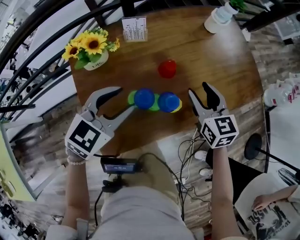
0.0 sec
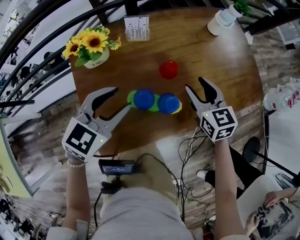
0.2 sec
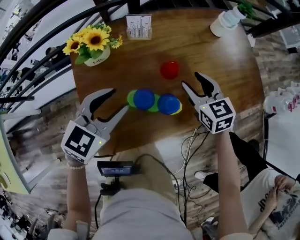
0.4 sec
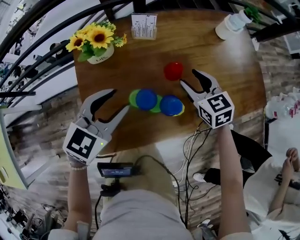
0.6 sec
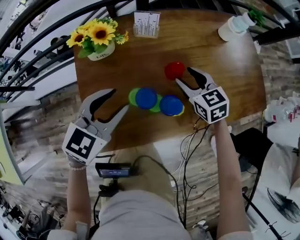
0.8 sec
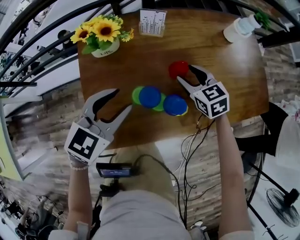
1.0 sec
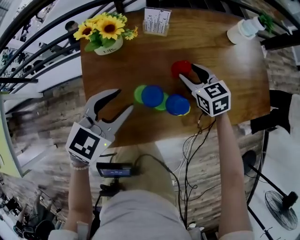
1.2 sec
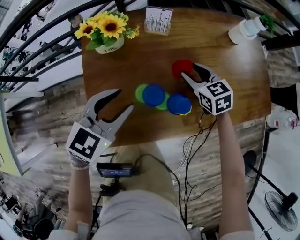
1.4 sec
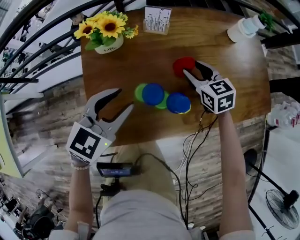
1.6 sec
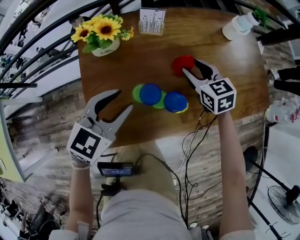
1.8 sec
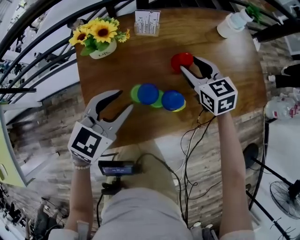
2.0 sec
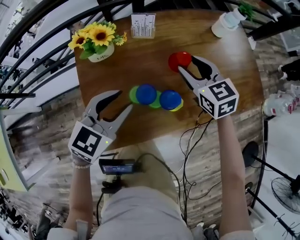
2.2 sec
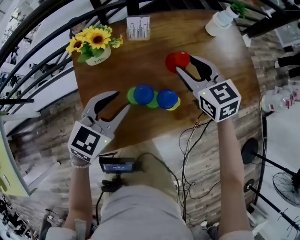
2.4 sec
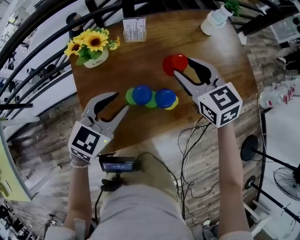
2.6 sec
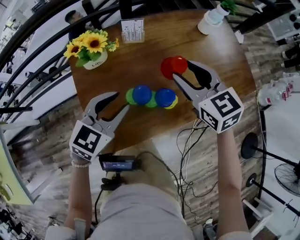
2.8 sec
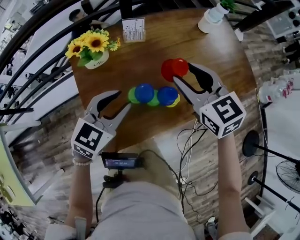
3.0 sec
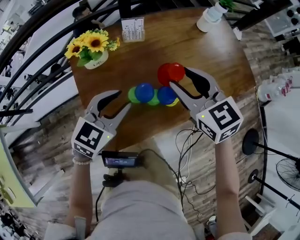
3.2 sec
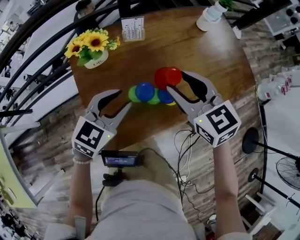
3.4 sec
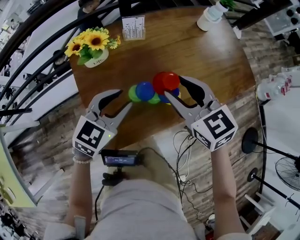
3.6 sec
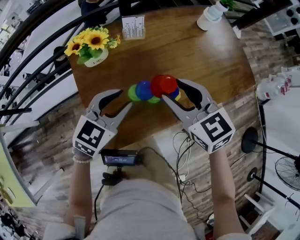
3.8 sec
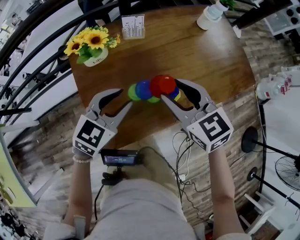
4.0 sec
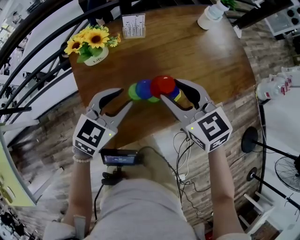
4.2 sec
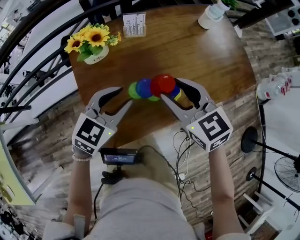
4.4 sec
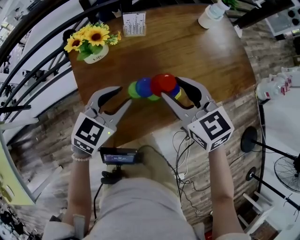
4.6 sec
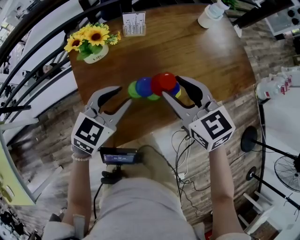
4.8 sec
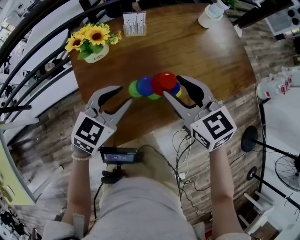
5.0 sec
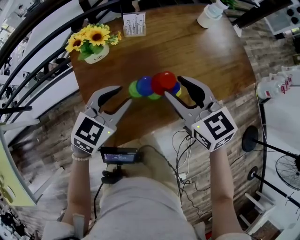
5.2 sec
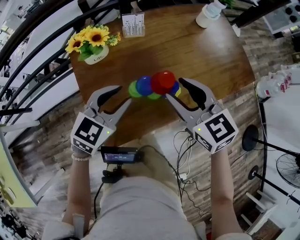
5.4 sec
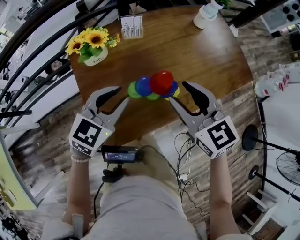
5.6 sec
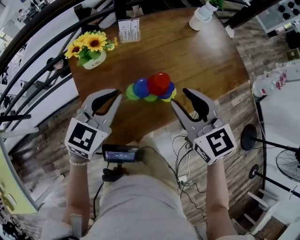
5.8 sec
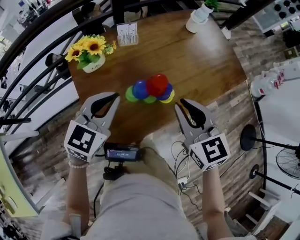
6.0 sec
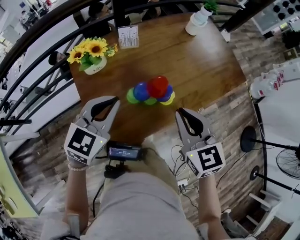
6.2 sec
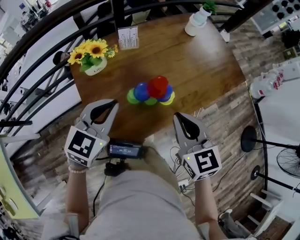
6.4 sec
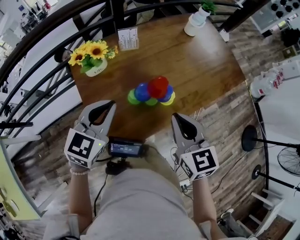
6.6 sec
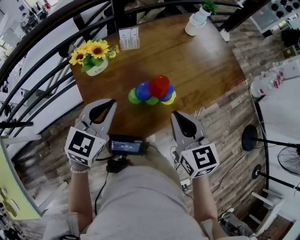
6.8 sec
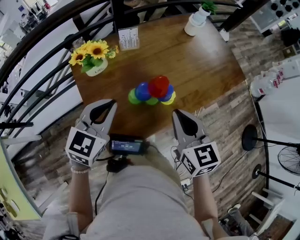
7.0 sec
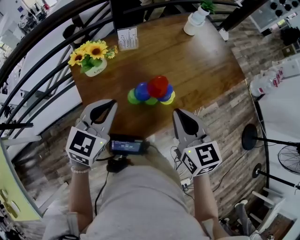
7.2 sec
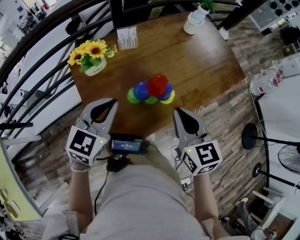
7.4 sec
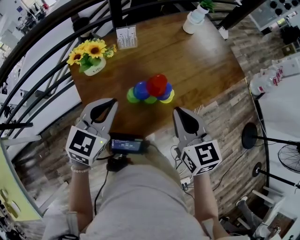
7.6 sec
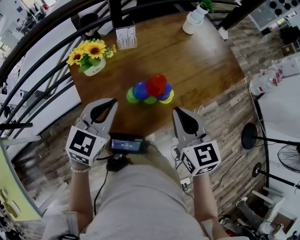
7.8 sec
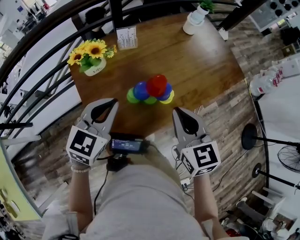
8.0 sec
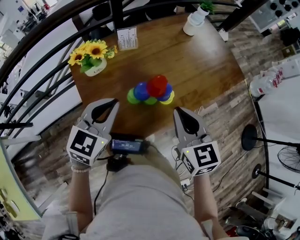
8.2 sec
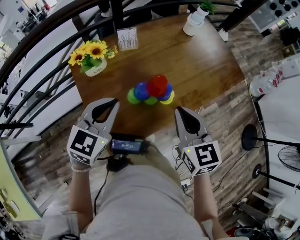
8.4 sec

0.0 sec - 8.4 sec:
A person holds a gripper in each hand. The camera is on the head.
0.0 sec - 1.4 sec: The right gripper heads downward, forward and to the left, covering approximately 15 cm, and rotates some 30 degrees.
1.4 sec - 2.8 sec: The right gripper moves upward, some 15 cm.
2.8 sec - 4.2 sec: The right gripper shifts some 5 cm backward.
4.2 sec - 5.6 sec: There are only small adjustments of the grippers.
5.6 sec - 7.0 sec: The left gripper ends up some 5 cm from where it was, and closes up, while the right gripper shifts some 5 cm backward, swivels some 20 degrees, and closes its fingers.
7.0 sec - 8.4 sec: Neither gripper changes place.

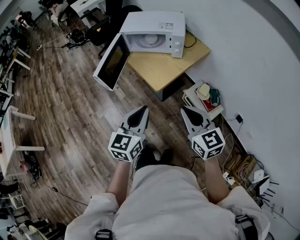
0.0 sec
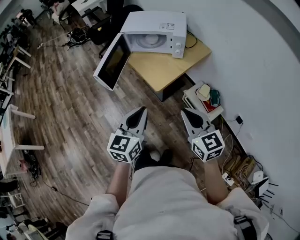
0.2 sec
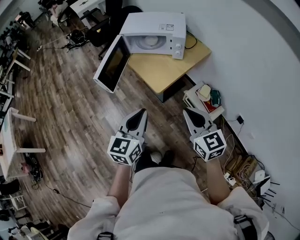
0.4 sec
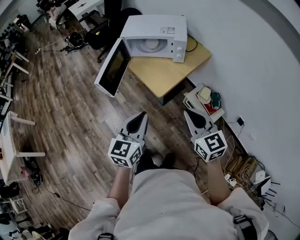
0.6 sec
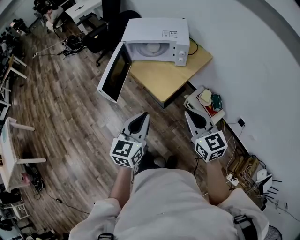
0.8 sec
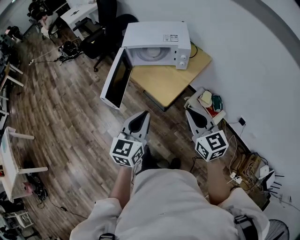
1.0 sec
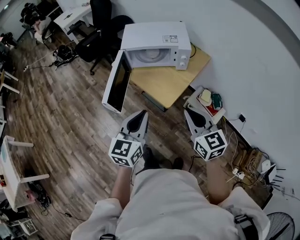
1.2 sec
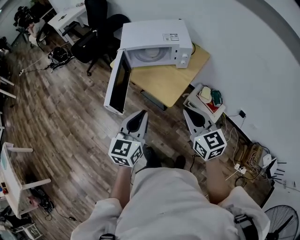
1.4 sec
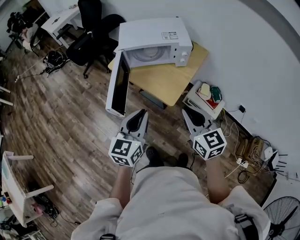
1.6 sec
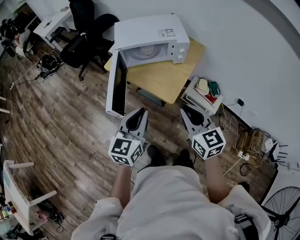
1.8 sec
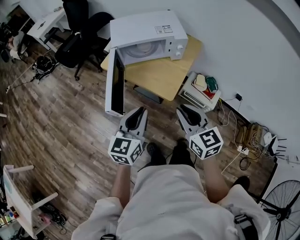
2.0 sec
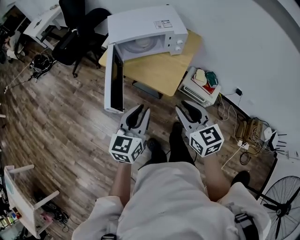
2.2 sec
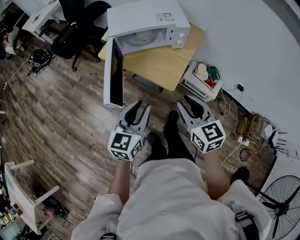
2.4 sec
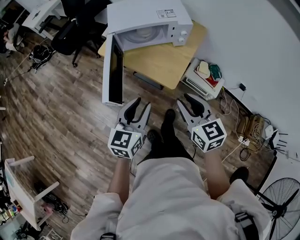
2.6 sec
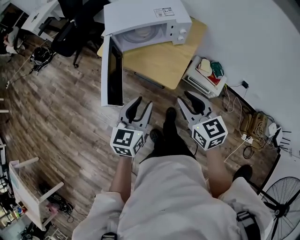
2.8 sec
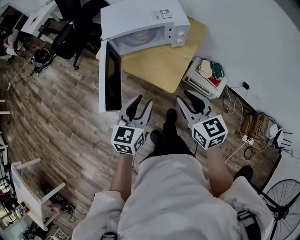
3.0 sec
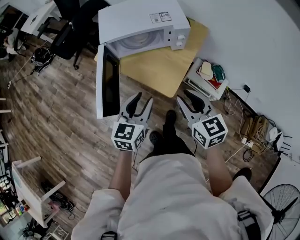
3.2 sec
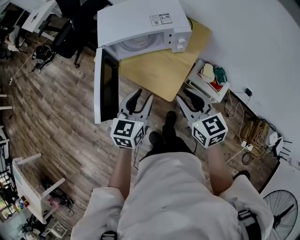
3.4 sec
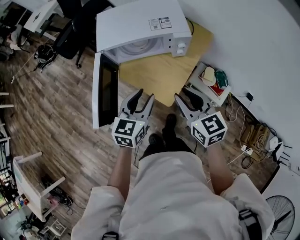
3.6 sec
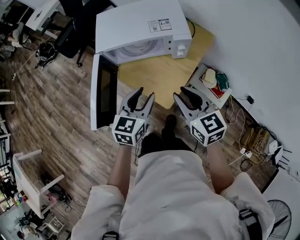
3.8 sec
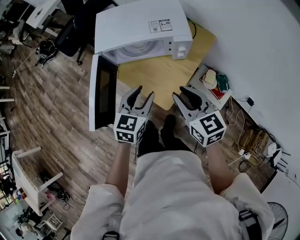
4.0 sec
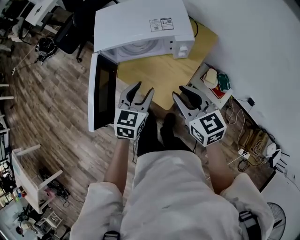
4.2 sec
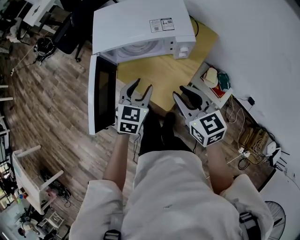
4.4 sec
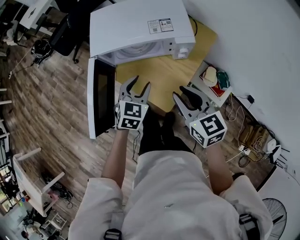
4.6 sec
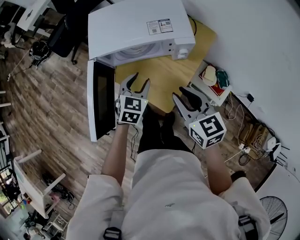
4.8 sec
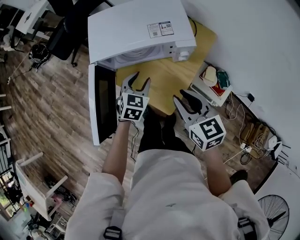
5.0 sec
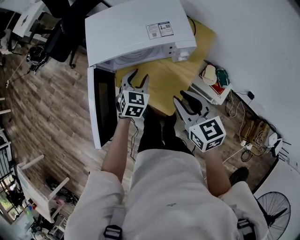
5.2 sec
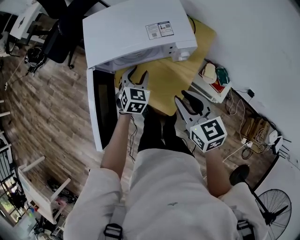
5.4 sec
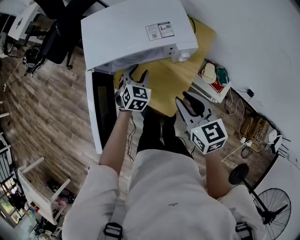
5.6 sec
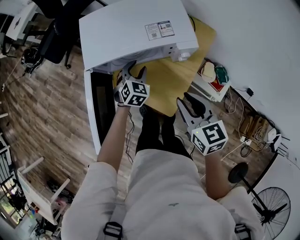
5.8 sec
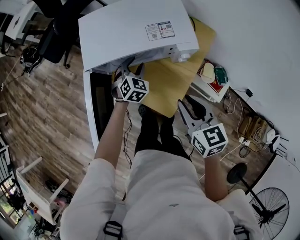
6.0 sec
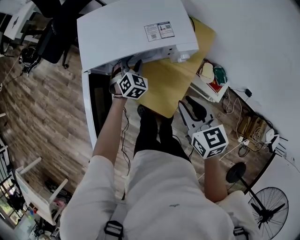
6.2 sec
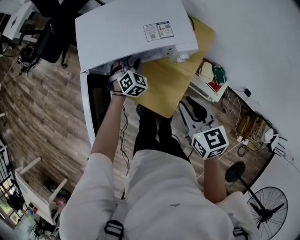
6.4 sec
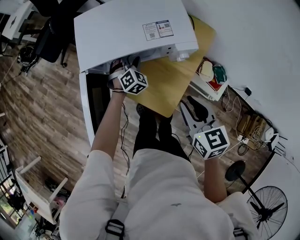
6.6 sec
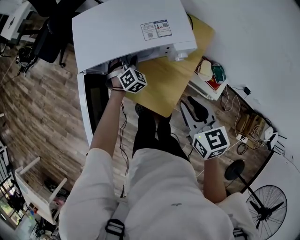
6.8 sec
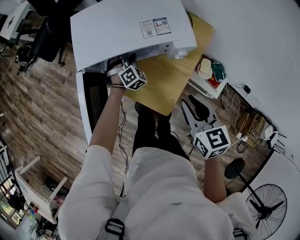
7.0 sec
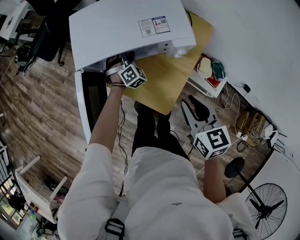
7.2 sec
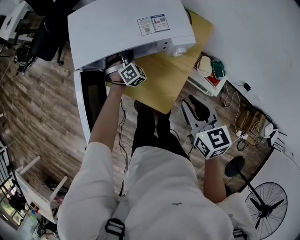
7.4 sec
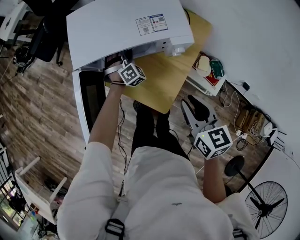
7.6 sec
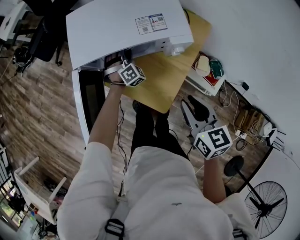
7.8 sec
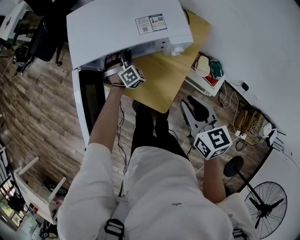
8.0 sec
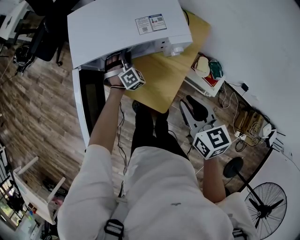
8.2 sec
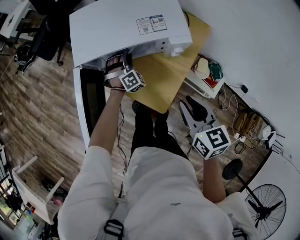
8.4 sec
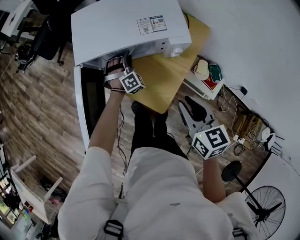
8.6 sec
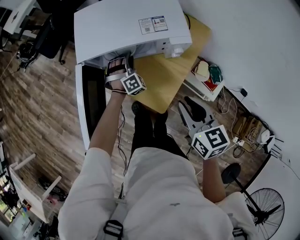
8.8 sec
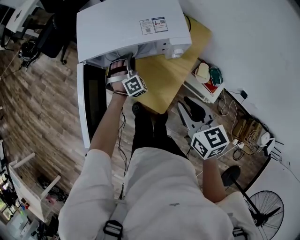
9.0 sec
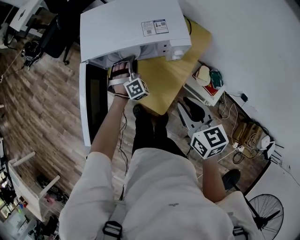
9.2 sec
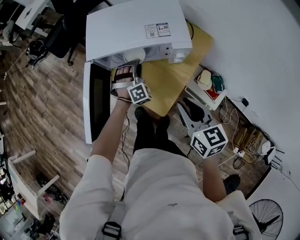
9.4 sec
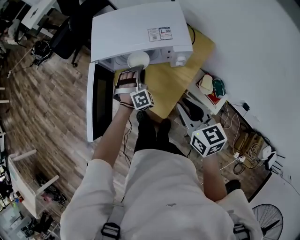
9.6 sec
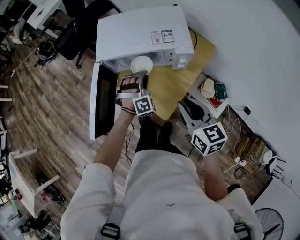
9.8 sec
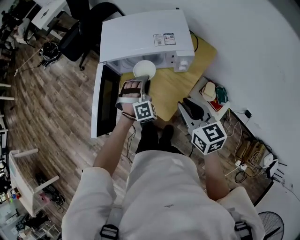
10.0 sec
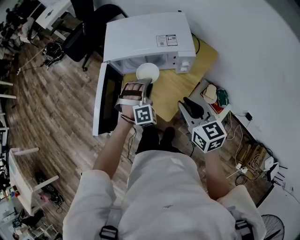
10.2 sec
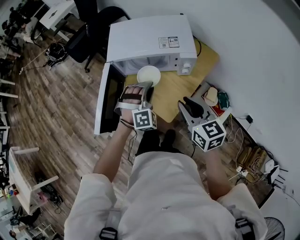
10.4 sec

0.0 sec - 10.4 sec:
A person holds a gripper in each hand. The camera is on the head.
0.0 sec - 1.4 sec: Both grippers travel together to the left and forward, roughly 20 cm.
1.4 sec - 3.0 sec: Both grippers travel together forward and downward, approximately 10 cm. The left gripper opens up; the right gripper opens up.
3.0 sec - 4.4 sec: The grippers both shift forward by roughly 15 cm.
4.4 sec - 6.0 sec: The left gripper goes approximately 20 cm forward and downward, and turns by about 30 degrees.
6.0 sec - 7.4 sec: The left gripper heads forward and downward, covering about 10 cm, and swivels some 30 degrees.
7.4 sec - 9.0 sec: The left gripper is displaced backward by some 5 cm.
9.0 sec - 10.4 sec: The left gripper goes about 20 cm backward and upward.

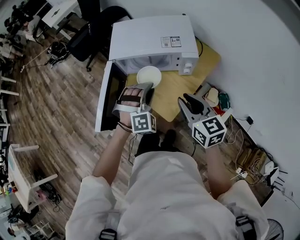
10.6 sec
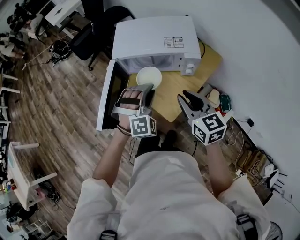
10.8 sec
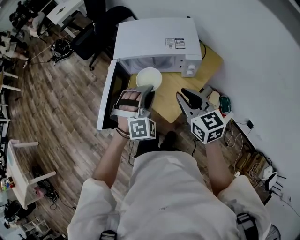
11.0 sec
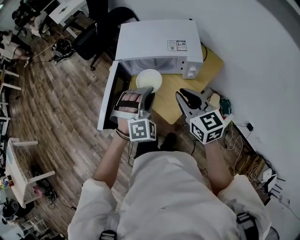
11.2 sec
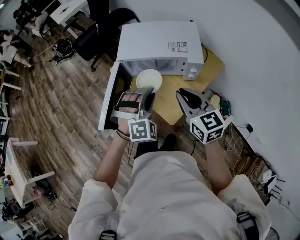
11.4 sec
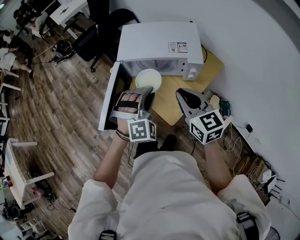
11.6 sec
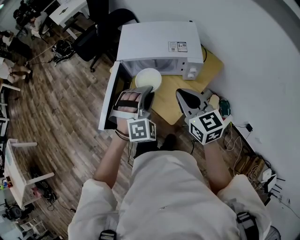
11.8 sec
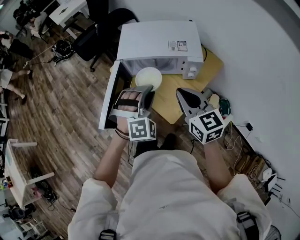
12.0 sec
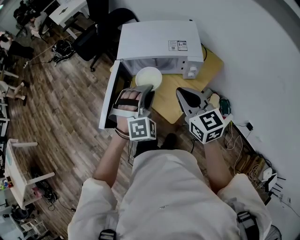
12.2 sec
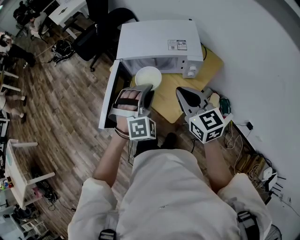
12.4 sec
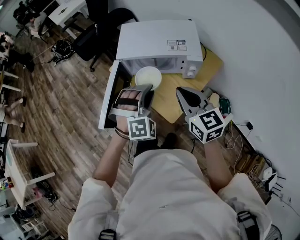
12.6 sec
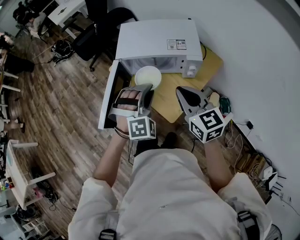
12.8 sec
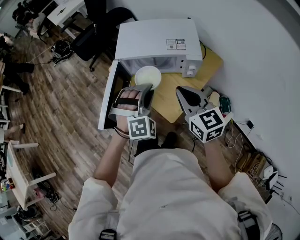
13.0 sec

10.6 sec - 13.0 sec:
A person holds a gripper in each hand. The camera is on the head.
10.6 sec - 11.8 sec: The right gripper ends up roughly 5 cm from where it was. Meanwhile the left gripper travels upward by approximately 5 cm.
11.8 sec - 13.0 sec: Neither gripper changes place.

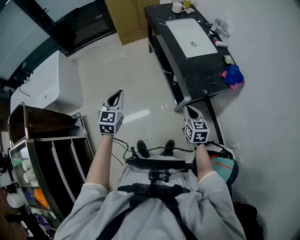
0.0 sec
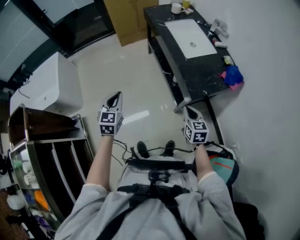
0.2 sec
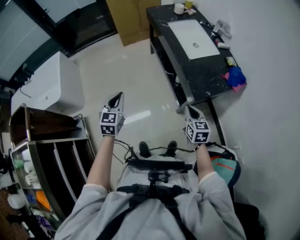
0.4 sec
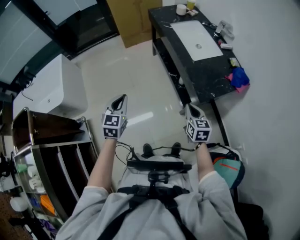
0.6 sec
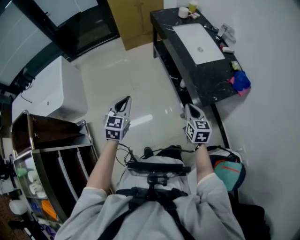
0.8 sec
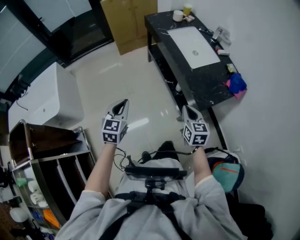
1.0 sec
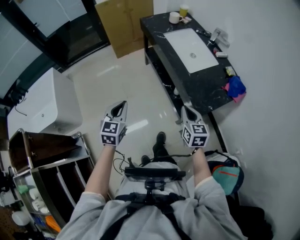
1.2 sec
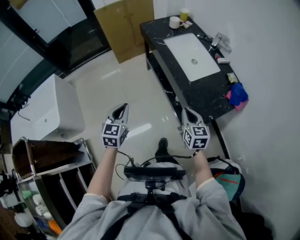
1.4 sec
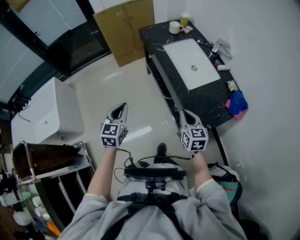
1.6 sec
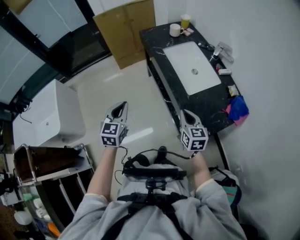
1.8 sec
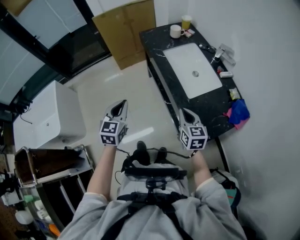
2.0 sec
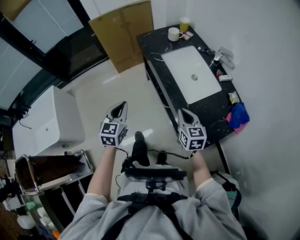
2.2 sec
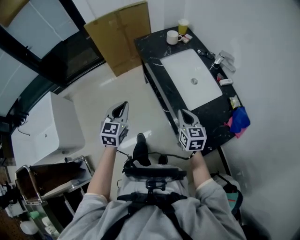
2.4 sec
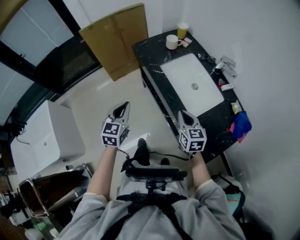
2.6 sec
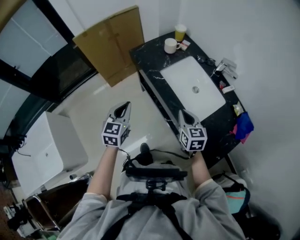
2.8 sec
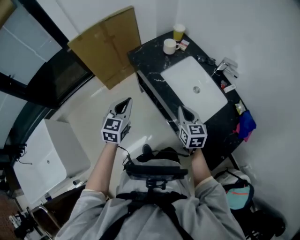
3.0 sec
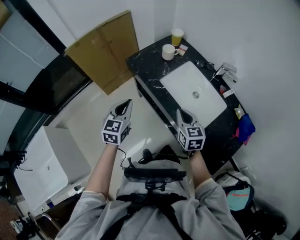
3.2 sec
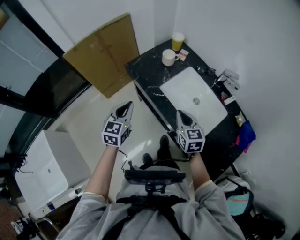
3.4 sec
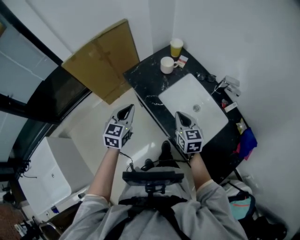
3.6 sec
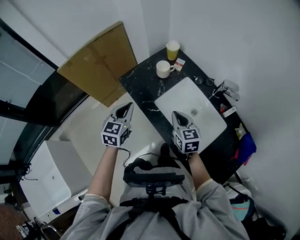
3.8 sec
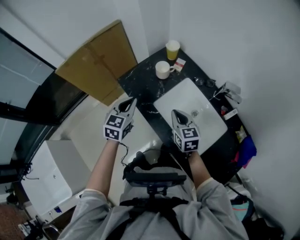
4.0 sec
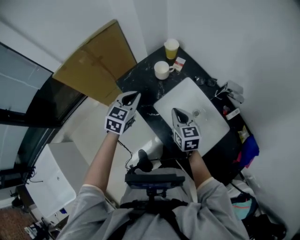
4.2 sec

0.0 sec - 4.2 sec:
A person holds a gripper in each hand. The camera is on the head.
0.0 sec - 1.4 sec: Both grippers move forward, approximately 15 cm.
1.4 sec - 2.8 sec: The grippers both shift forward by about 30 cm.
2.8 sec - 4.2 sec: Both grippers travel together forward, some 25 cm. The left gripper changes its angle by approximately 20 degrees.
